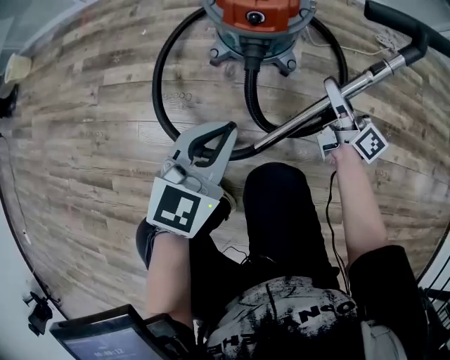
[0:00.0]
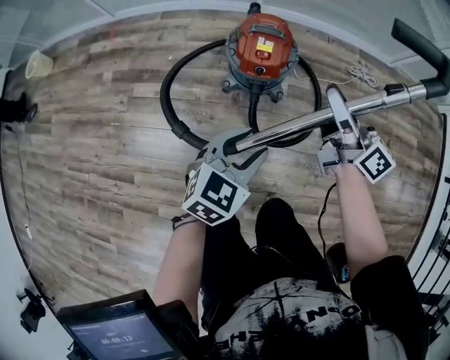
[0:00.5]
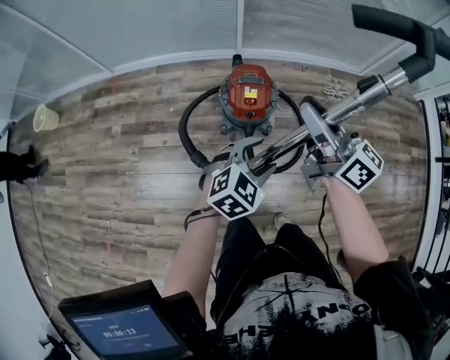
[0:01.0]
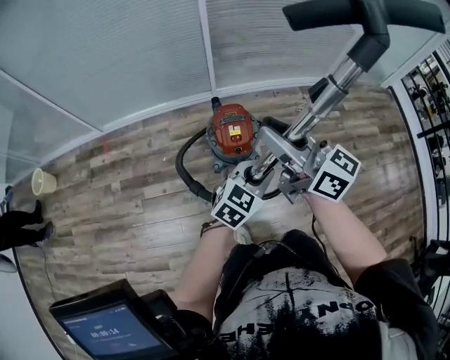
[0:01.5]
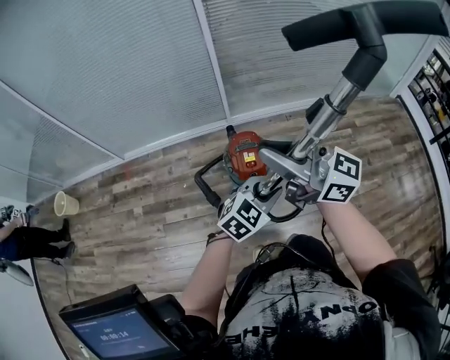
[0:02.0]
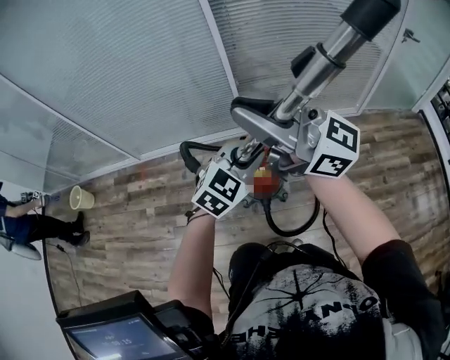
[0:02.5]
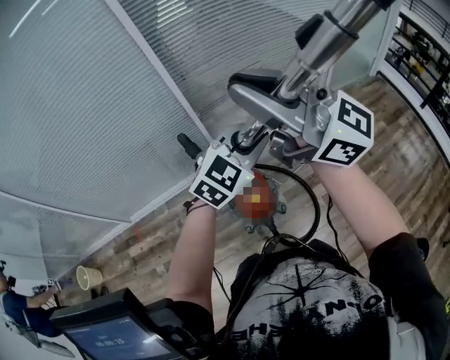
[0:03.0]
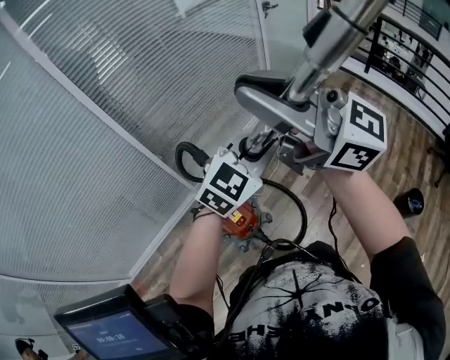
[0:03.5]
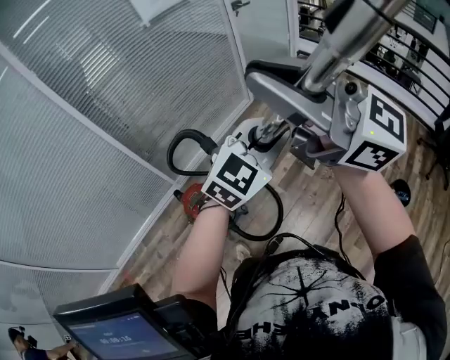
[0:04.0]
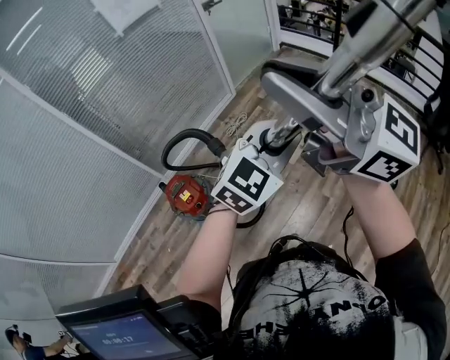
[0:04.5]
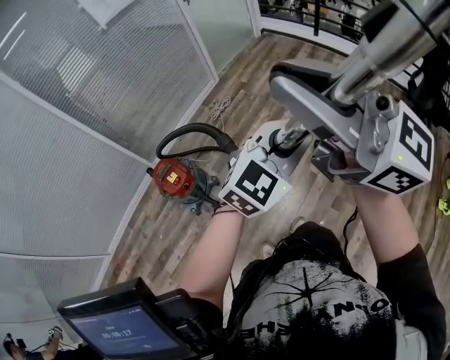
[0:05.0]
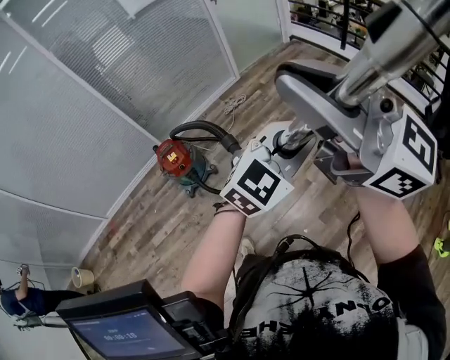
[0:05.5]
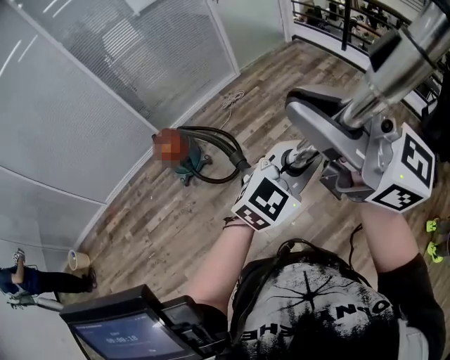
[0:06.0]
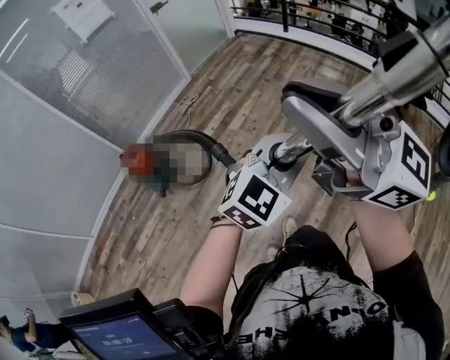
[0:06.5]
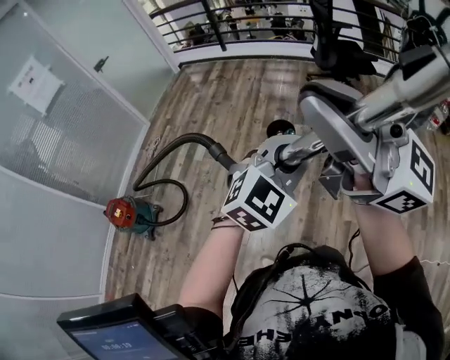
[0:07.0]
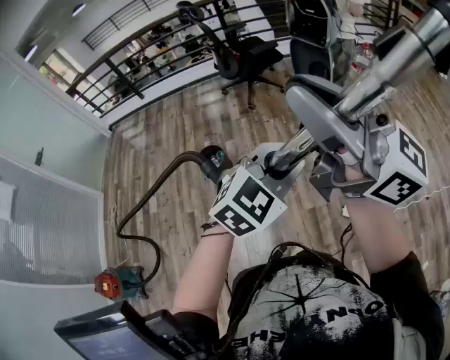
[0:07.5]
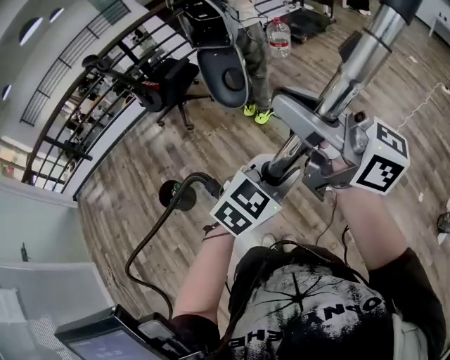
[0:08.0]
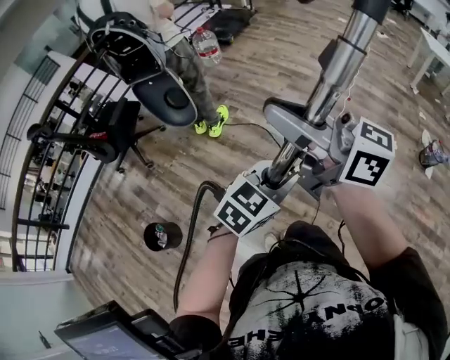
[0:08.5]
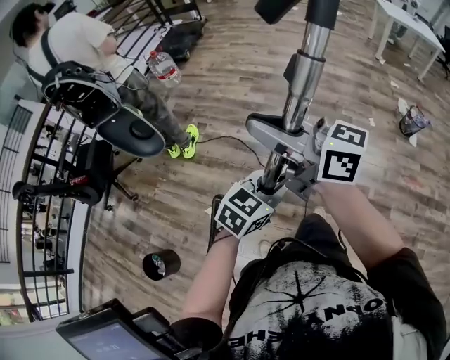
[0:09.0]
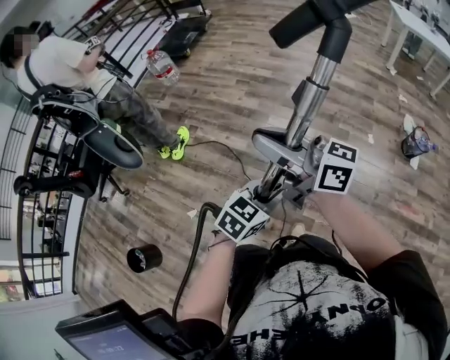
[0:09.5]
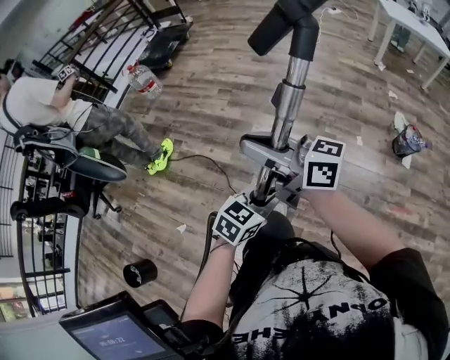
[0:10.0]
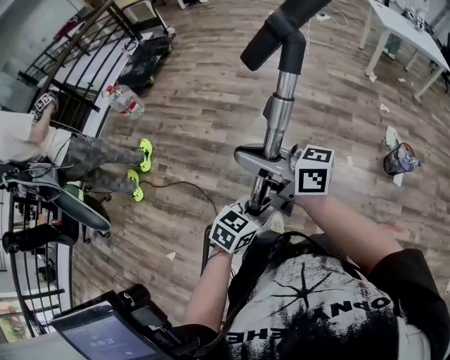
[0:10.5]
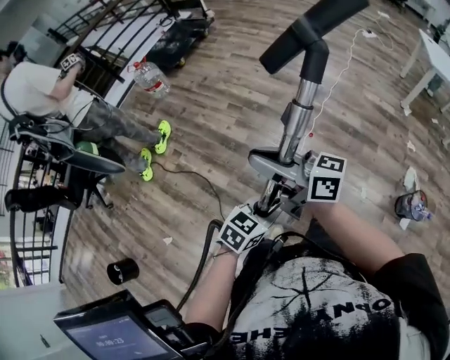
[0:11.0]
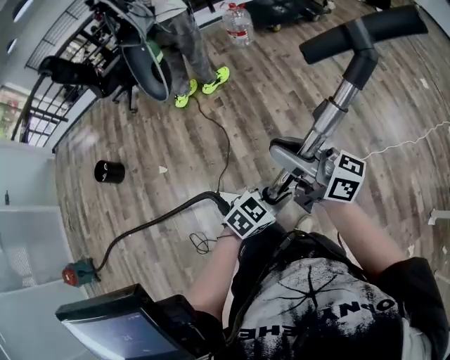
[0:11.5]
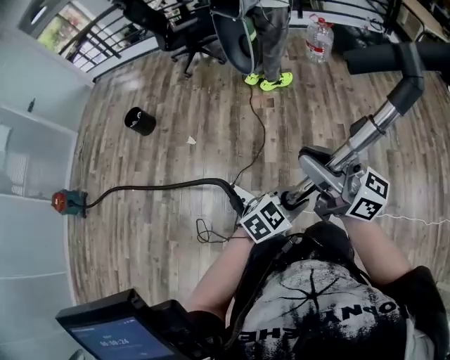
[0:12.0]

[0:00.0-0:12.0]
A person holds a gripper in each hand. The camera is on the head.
0:00.0 to 0:02.0: The left gripper shifts approximately 40 cm upward, swivels about 40 degrees, and opens, then closes again. Meanwhile the right gripper moves upward, approximately 70 cm, and swivels about 40 degrees.
0:02.0 to 0:04.0: The right gripper changes place by some 35 cm, and turns by approximately 50 degrees, while the left gripper shifts by approximately 35 cm, and turns by about 50 degrees.
0:04.0 to 0:06.0: The pair of grippers is taken backward and to the right, approximately 60 cm.
0:06.0 to 0:08.0: Both grippers are carried roughly 80 cm. The right gripper rotates some 80 degrees. The left gripper changes its angle by some 90 degrees.
0:08.0 to 0:10.0: Both grippers are carried some 50 cm. The right gripper turns by about 30 degrees; the left gripper swivels some 30 degrees.
0:10.0 to 0:12.0: The right gripper shifts by roughly 35 cm, and changes its angle by approximately 60 degrees; the left gripper ends up roughly 40 cm from where it was, and rotates roughly 60 degrees.

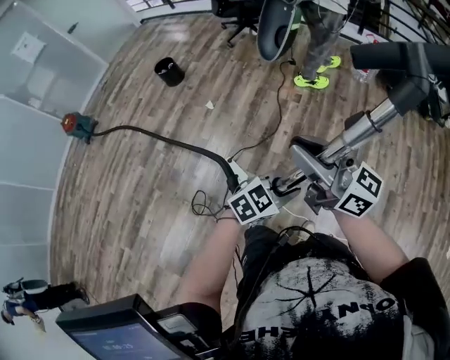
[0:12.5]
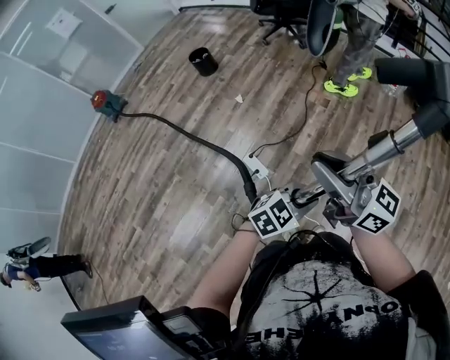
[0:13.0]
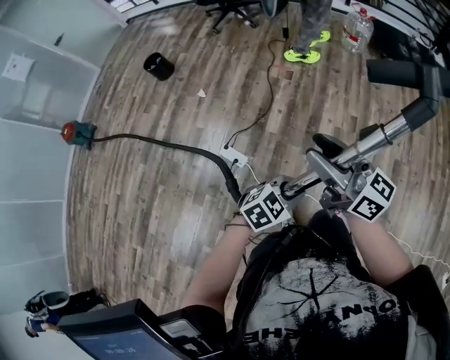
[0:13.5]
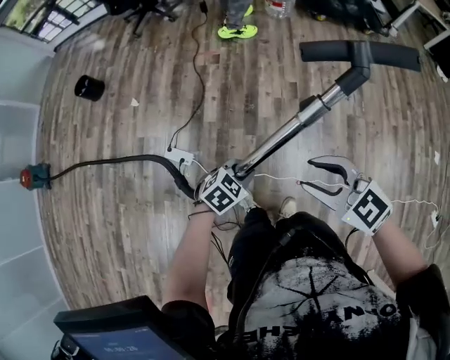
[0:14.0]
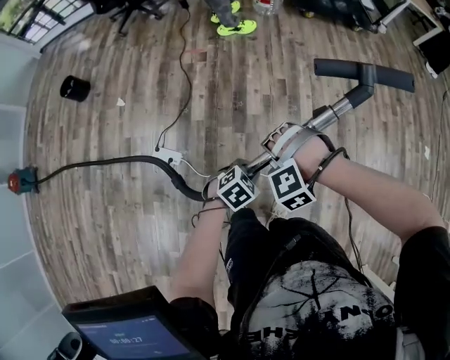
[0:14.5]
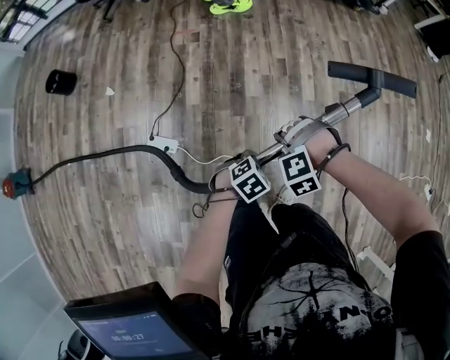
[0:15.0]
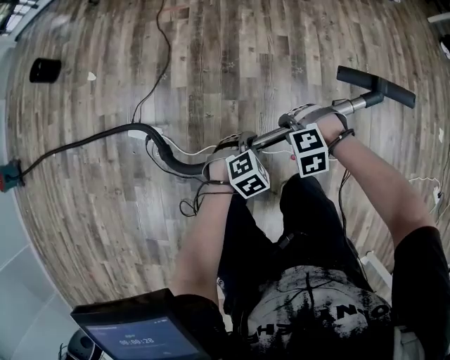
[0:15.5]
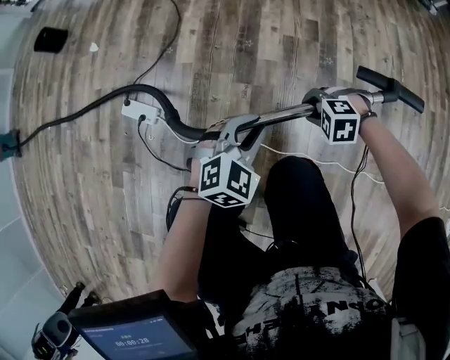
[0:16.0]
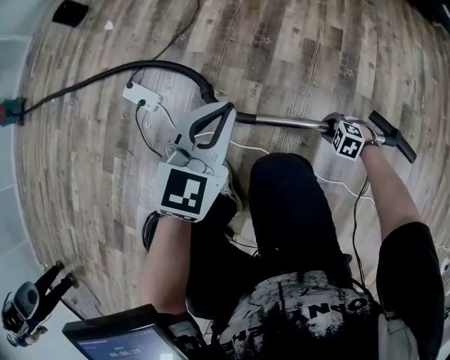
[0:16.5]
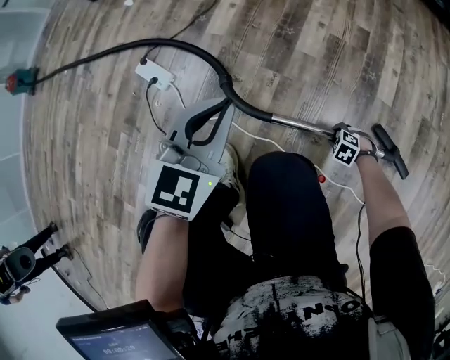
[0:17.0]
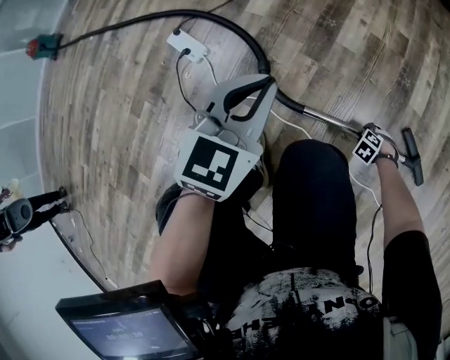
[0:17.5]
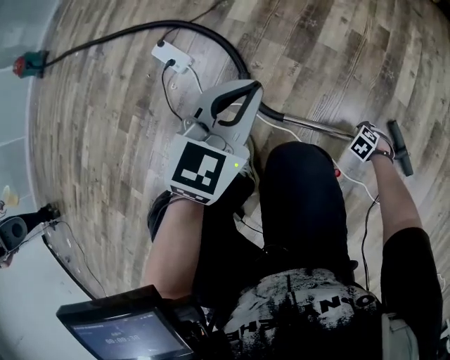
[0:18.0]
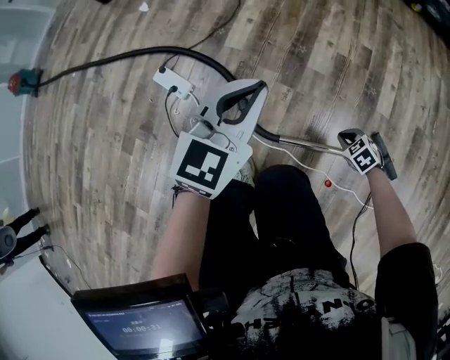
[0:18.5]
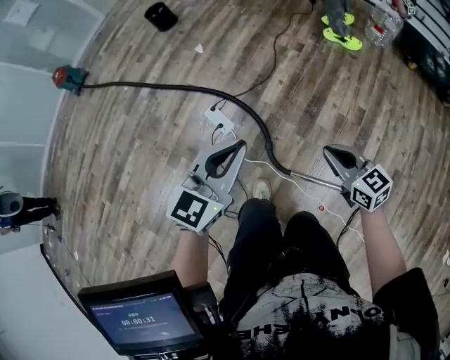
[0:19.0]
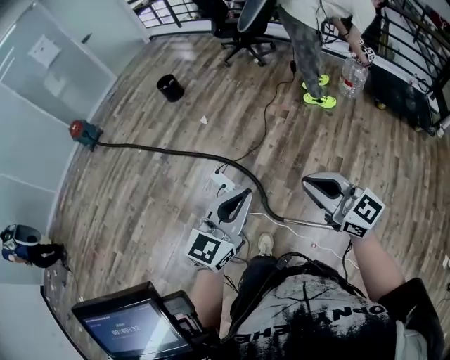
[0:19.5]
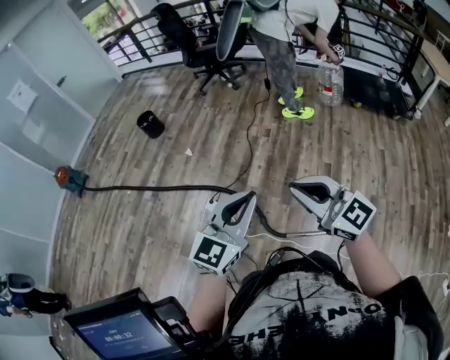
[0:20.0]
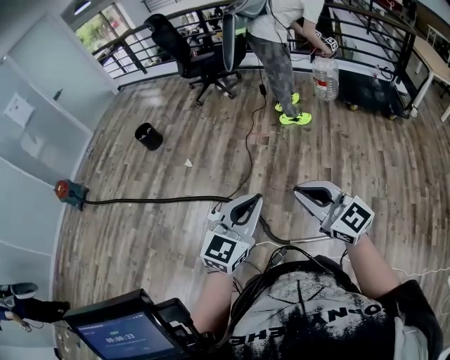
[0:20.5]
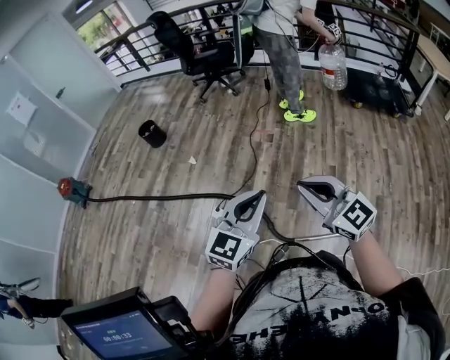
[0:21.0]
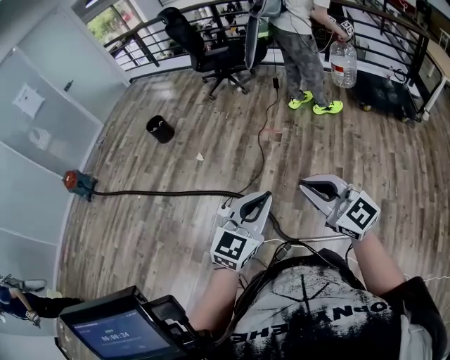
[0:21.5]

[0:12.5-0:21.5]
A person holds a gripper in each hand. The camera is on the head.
0:12.5 to 0:14.5: The left gripper heads downward, covering some 20 cm, and rotates some 30 degrees. The right gripper shifts approximately 30 cm downward, tilts its fingers about 90 degrees downward, and opens its fingers.
0:14.5 to 0:17.0: The right gripper goes some 70 cm downward, turns by some 40 degrees, and closes. The left gripper moves downward, some 25 cm, and tips its fingers upward by approximately 30 degrees.
0:17.0 to 0:19.5: The right gripper goes some 1 m upward, points its fingers some 80 degrees further upward, and closes; the left gripper is displaced upward by about 60 cm, and turns by some 20 degrees.
0:19.5 to 0:21.5: The right gripper heads to the left and forward, covering roughly 10 cm. The left gripper is displaced forward by roughly 5 cm.

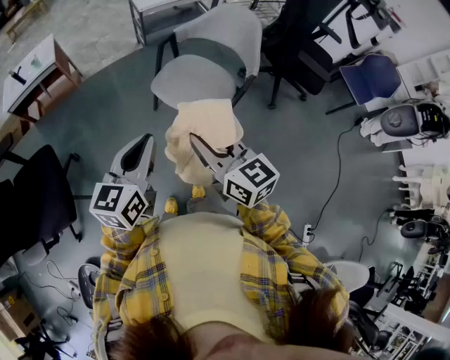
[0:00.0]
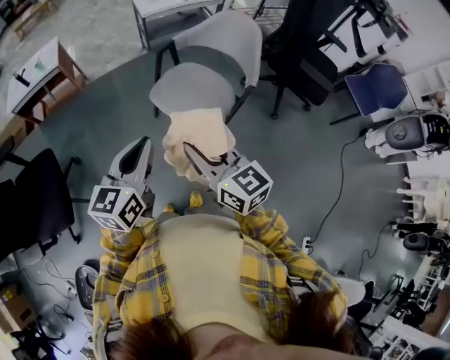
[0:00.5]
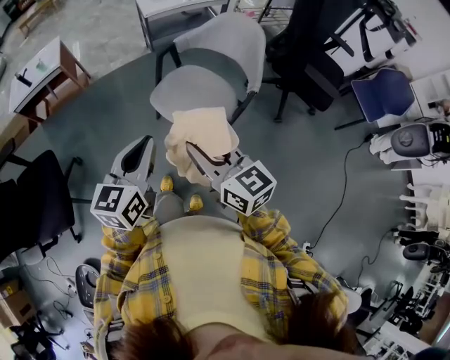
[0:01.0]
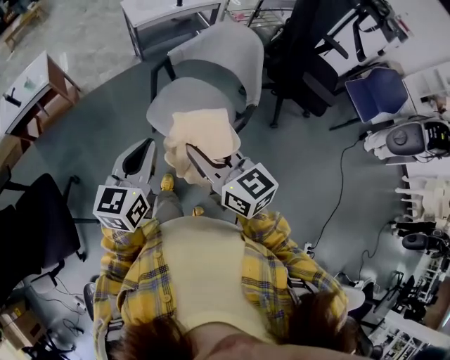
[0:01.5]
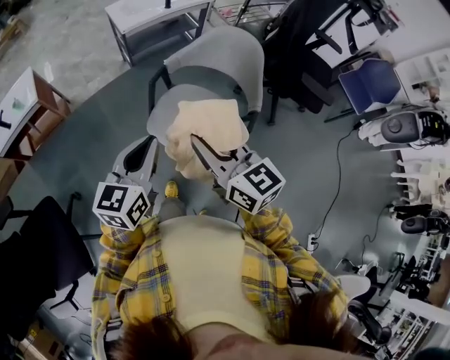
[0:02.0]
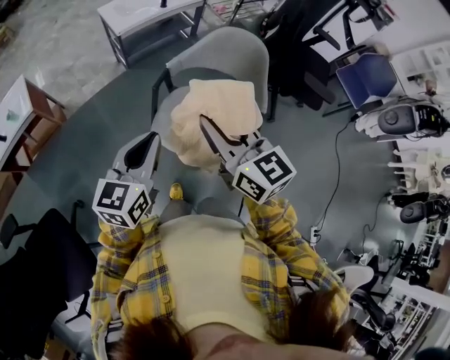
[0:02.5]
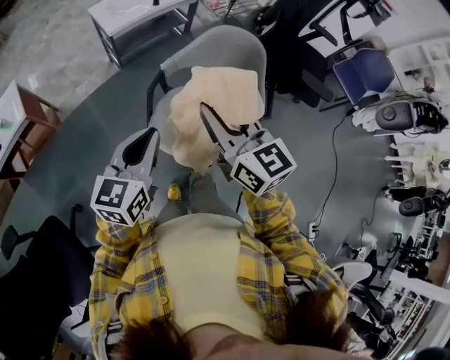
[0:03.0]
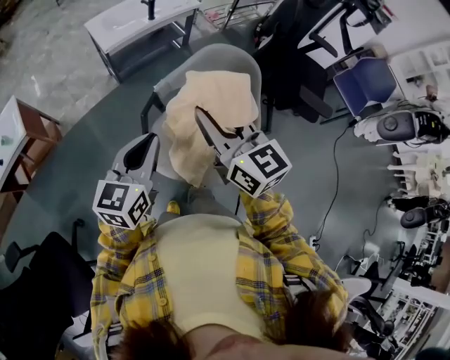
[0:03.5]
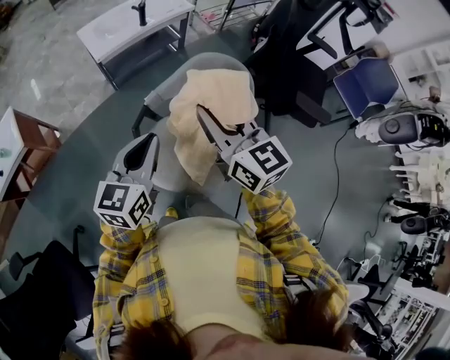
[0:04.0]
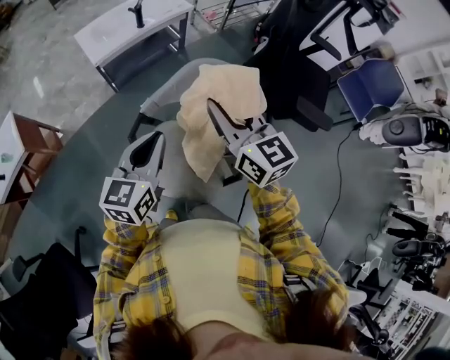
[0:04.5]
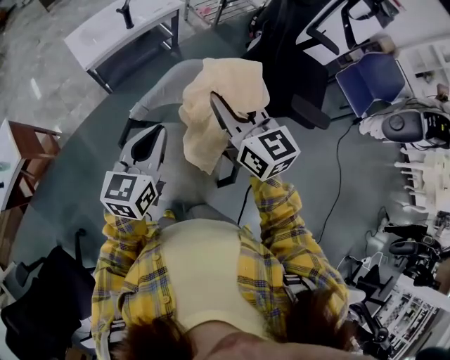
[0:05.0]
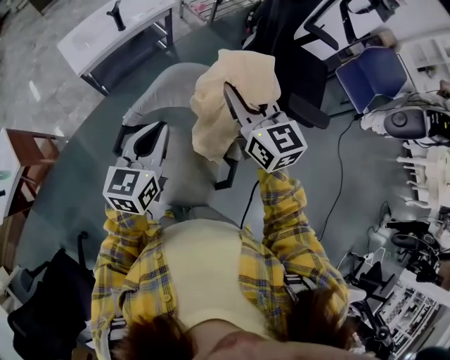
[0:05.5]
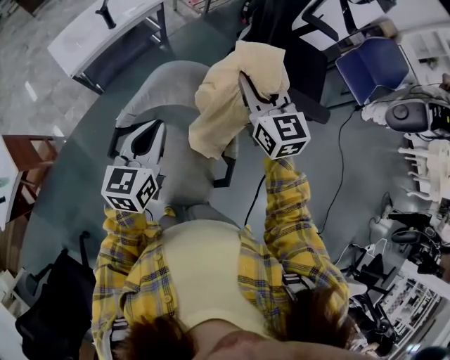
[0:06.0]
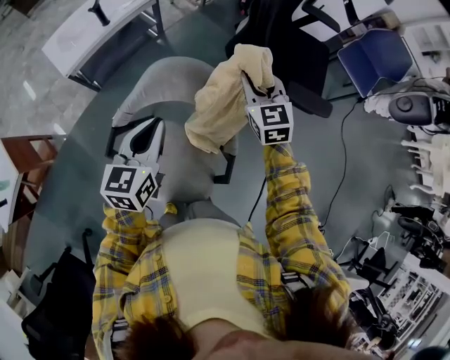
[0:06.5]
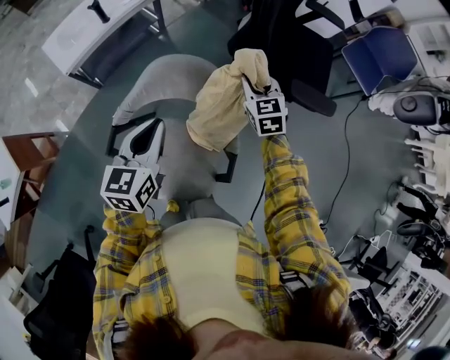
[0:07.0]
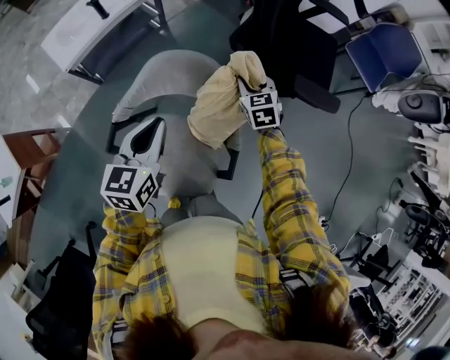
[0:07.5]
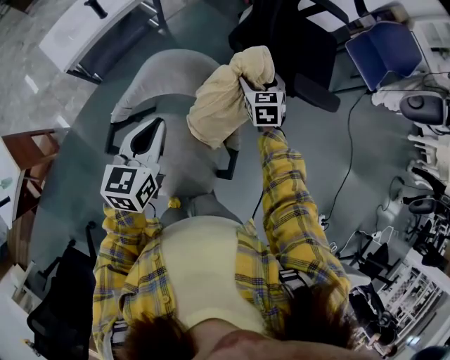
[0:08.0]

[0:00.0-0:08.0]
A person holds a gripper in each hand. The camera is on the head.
0:00.0 to 0:02.0: Both grippers travel together forward, about 25 cm.
0:02.0 to 0:04.0: The grippers both shift forward by about 20 cm.
0:04.0 to 0:06.0: The right gripper moves to the right and forward, some 30 cm, and rotates roughly 20 degrees. The left gripper is displaced forward and to the right by about 20 cm.
0:06.0 to 0:08.0: The right gripper heads downward, covering roughly 20 cm, rotates some 30 degrees, and opens.
